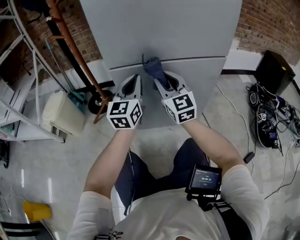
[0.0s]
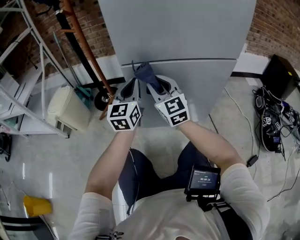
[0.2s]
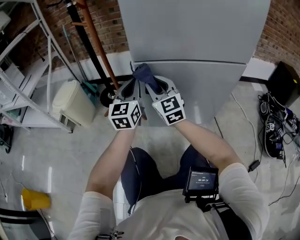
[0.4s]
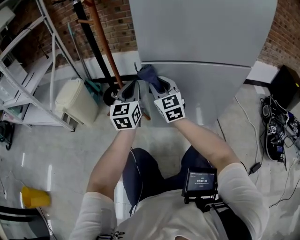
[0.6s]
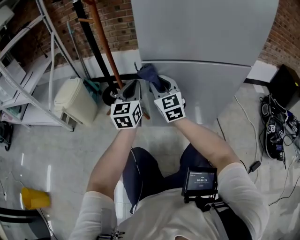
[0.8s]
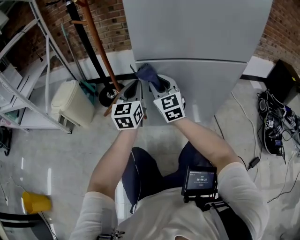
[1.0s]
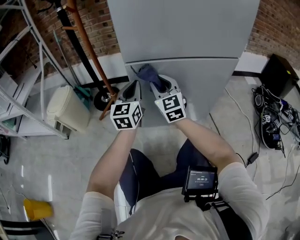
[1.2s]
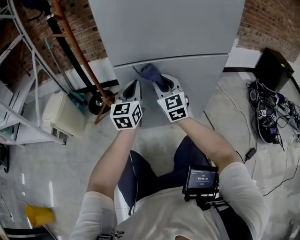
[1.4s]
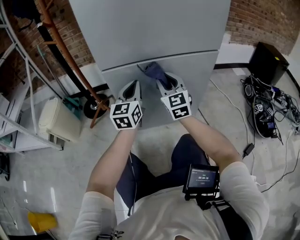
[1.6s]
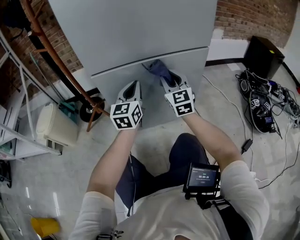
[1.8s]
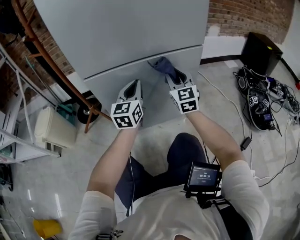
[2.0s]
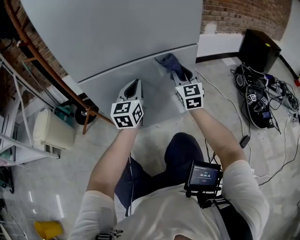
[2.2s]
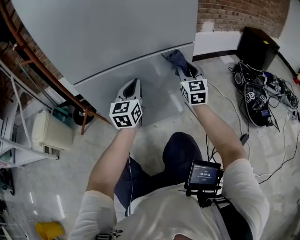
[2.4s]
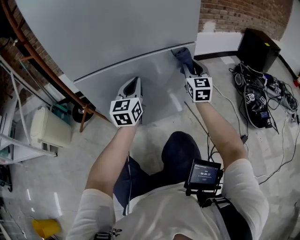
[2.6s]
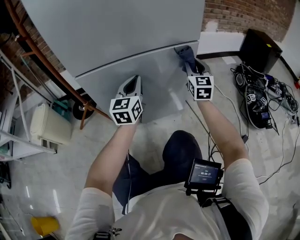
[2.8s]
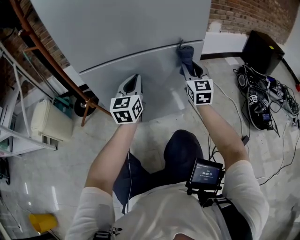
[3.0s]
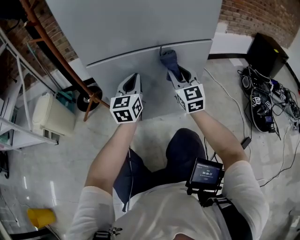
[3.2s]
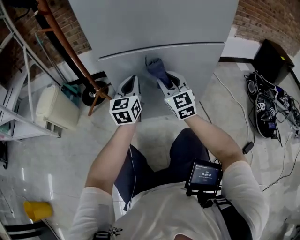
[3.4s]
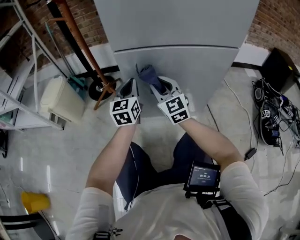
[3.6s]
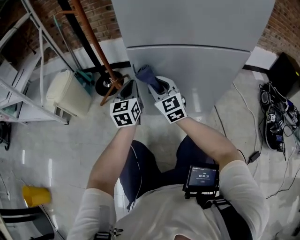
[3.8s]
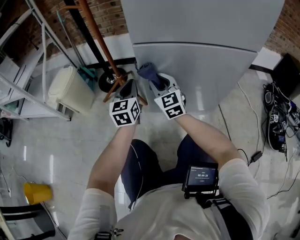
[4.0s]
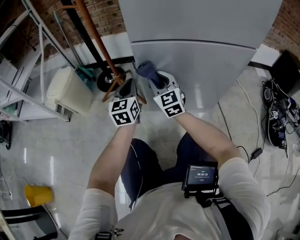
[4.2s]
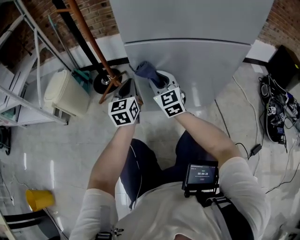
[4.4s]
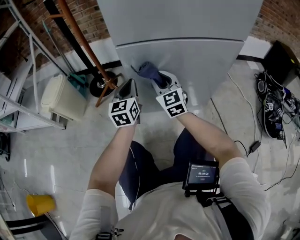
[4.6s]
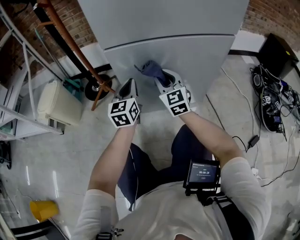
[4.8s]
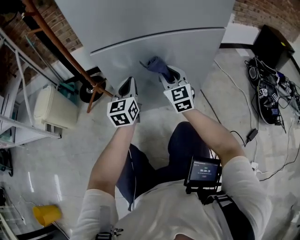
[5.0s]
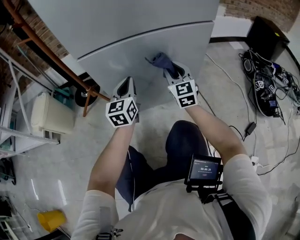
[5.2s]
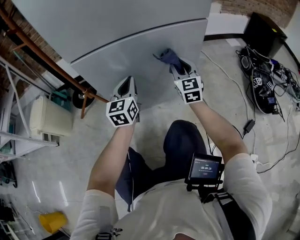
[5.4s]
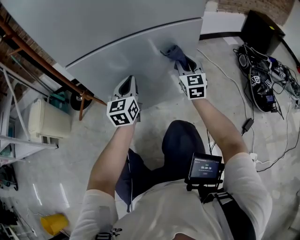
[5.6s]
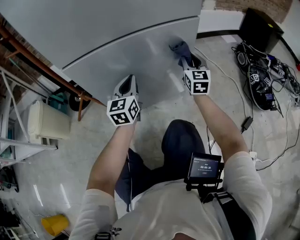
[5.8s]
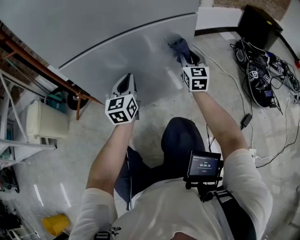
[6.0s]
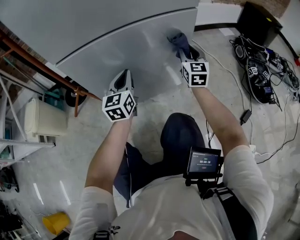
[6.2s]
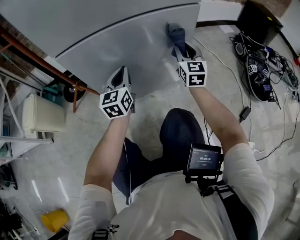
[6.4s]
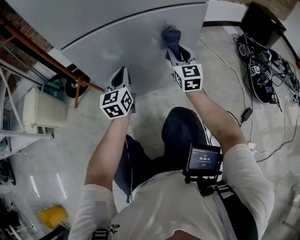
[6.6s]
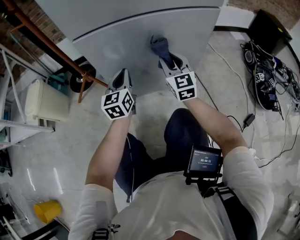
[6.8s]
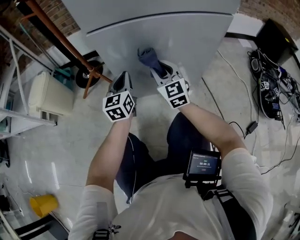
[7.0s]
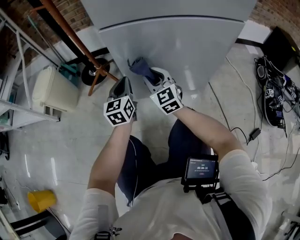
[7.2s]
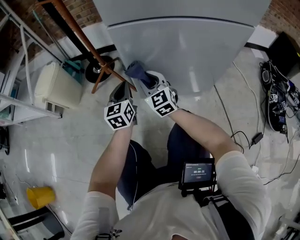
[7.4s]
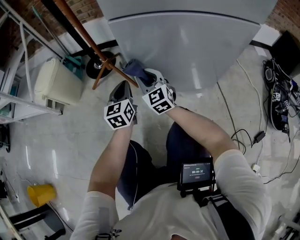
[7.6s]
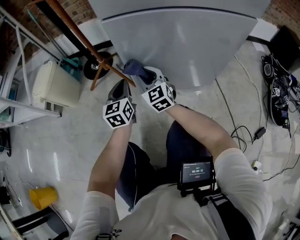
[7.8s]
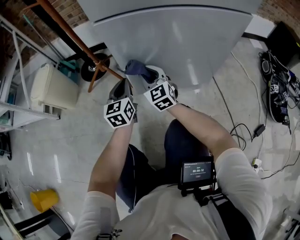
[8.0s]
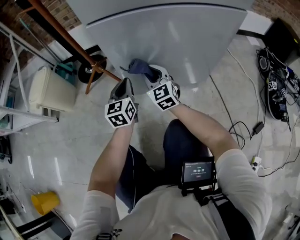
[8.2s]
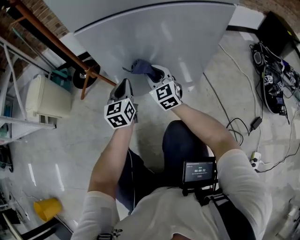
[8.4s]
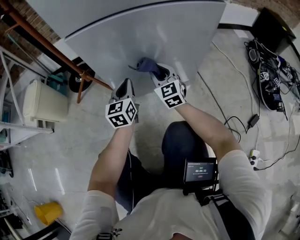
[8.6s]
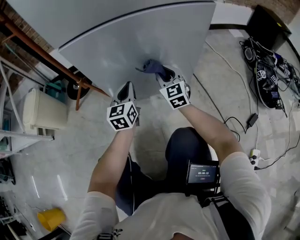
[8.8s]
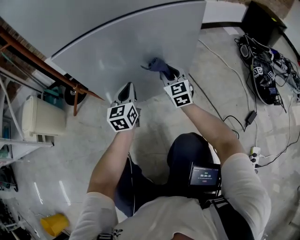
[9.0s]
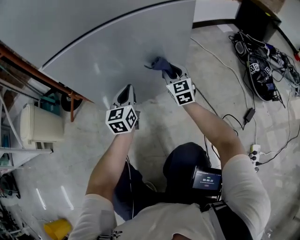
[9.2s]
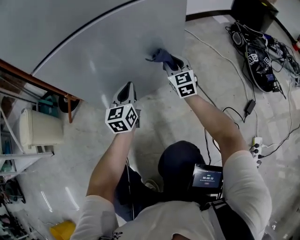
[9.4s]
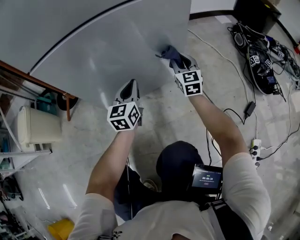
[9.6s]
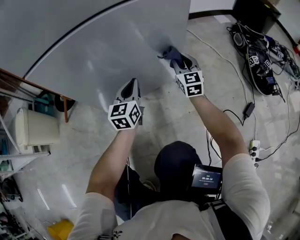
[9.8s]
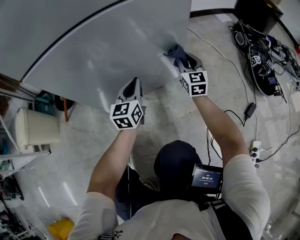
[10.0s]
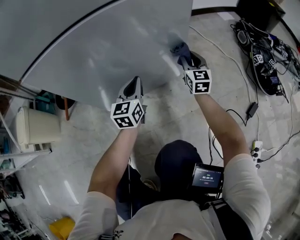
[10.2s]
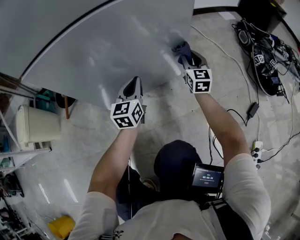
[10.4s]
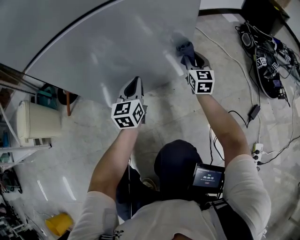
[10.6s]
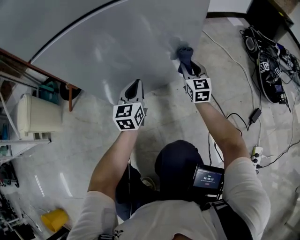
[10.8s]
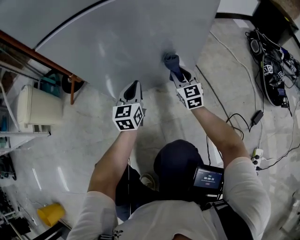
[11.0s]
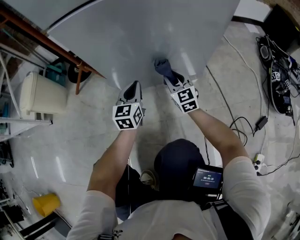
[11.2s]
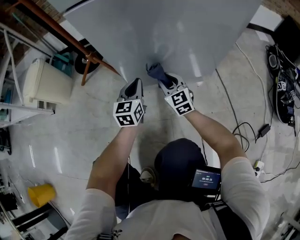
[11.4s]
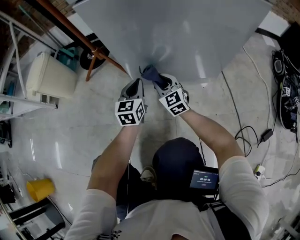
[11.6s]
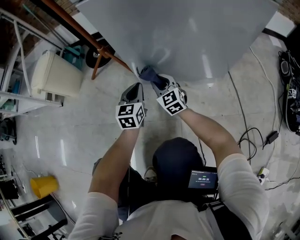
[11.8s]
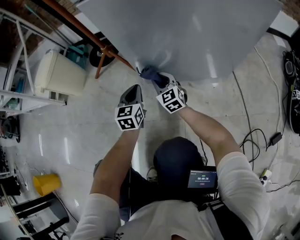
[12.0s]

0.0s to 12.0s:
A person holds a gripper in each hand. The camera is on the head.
0.0s to 1.6s: The right gripper moves some 15 cm to the left and comes back. Meanwhile the left gripper is displaced downward by roughly 5 cm, and goes to the left and returns, about 15 cm each way.
1.6s to 3.0s: The left gripper heads to the right, covering roughly 10 cm; the right gripper shifts roughly 20 cm to the right.
3.0s to 4.4s: The left gripper ends up some 25 cm from where it was, while the right gripper shifts by approximately 35 cm, and swivels roughly 30 degrees.
4.4s to 6.0s: The left gripper changes place by roughly 25 cm; the right gripper shifts by approximately 40 cm, and changes its angle by about 40 degrees.
6.0s to 7.6s: The right gripper ends up approximately 40 cm from where it was, and swivels roughly 40 degrees; the left gripper moves about 25 cm, and changes its angle by roughly 20 degrees.
7.6s to 9.0s: Both grippers travel together to the right, about 25 cm. The right gripper rotates roughly 30 degrees.
9.0s to 10.4s: The left gripper travels to the right by about 10 cm. The right gripper goes some 15 cm to the right and forward.
10.4s to 12.0s: The right gripper changes place by some 40 cm, and rotates approximately 40 degrees; the left gripper moves about 25 cm, and swivels about 30 degrees.

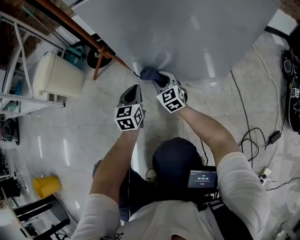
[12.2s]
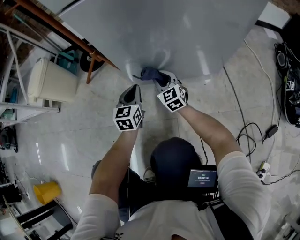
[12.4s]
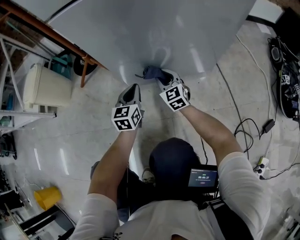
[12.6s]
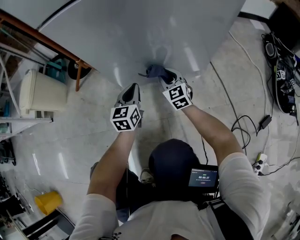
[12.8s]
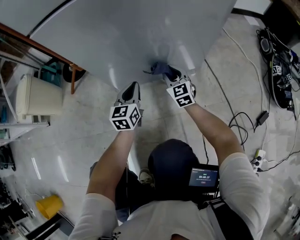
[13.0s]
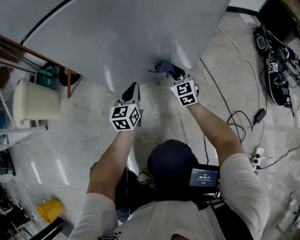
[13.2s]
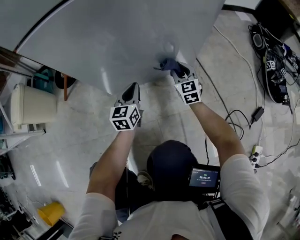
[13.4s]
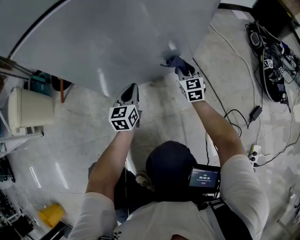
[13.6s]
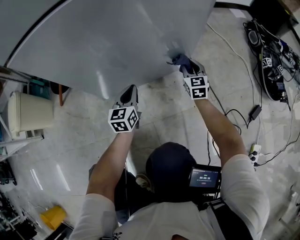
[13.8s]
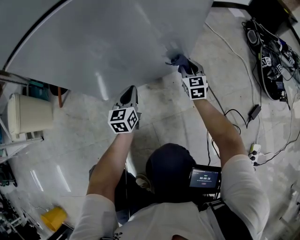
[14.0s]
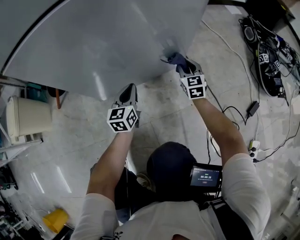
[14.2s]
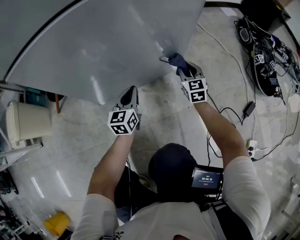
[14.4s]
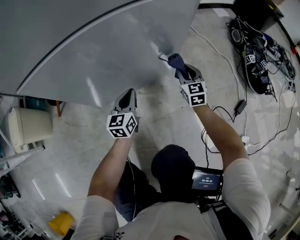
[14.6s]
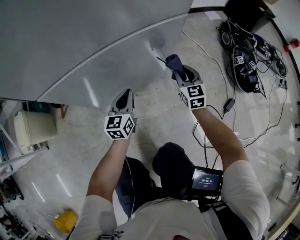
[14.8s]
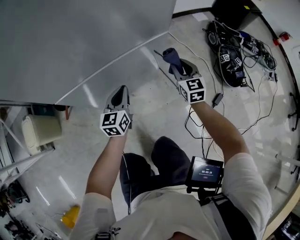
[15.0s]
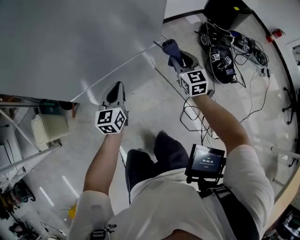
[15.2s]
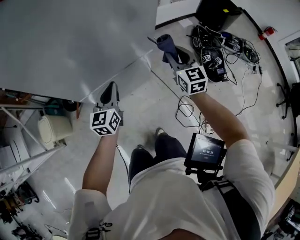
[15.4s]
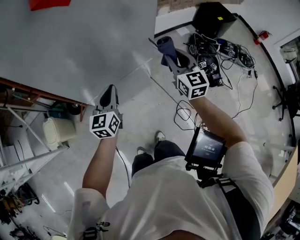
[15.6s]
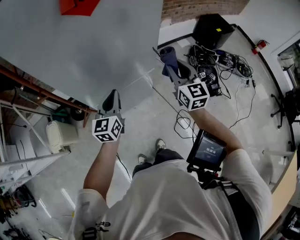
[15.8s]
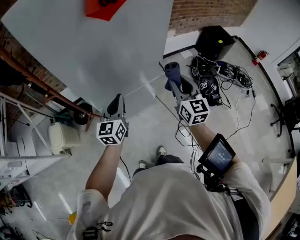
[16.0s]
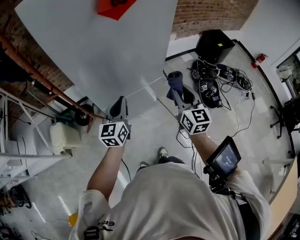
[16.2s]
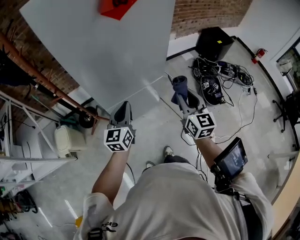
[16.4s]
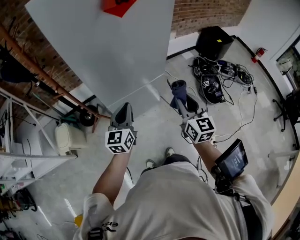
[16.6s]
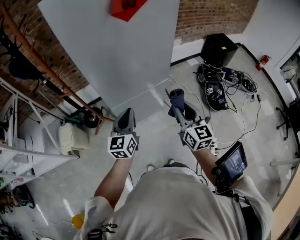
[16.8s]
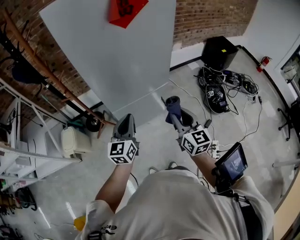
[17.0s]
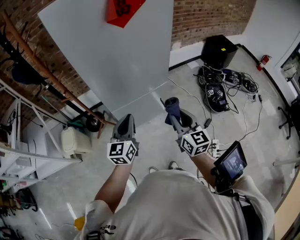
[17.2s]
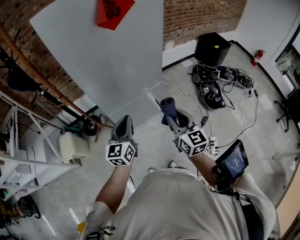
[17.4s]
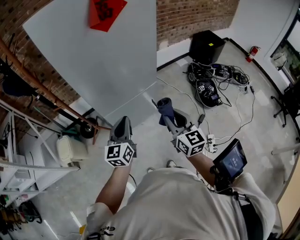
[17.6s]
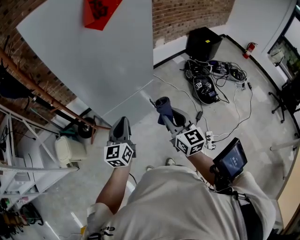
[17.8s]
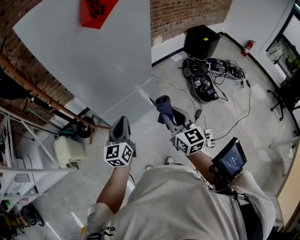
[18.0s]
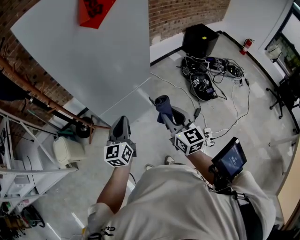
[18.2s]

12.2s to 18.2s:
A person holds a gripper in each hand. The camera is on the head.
12.2s to 13.8s: The right gripper moves roughly 35 cm, and rotates roughly 40 degrees. The left gripper shifts by about 20 cm.
13.8s to 15.2s: The two grippers go roughly 50 cm upward.
15.2s to 16.6s: Both grippers travel together upward and backward, roughly 40 cm.
16.6s to 18.2s: The right gripper travels backward by approximately 5 cm.

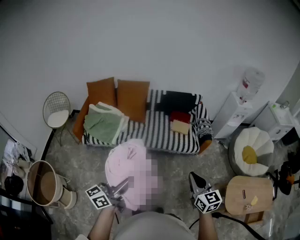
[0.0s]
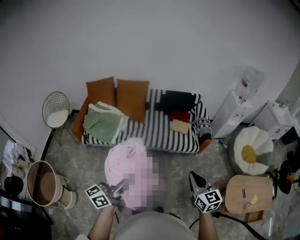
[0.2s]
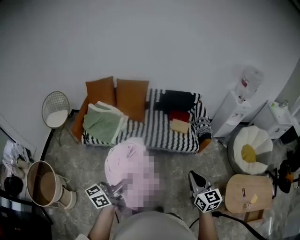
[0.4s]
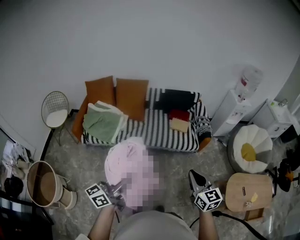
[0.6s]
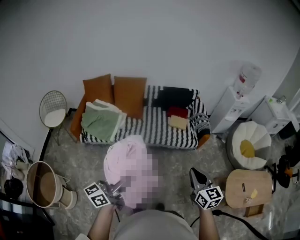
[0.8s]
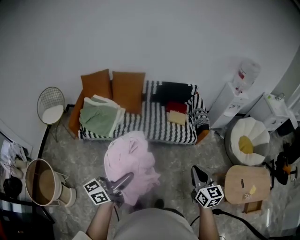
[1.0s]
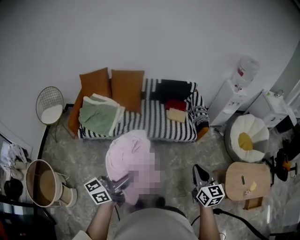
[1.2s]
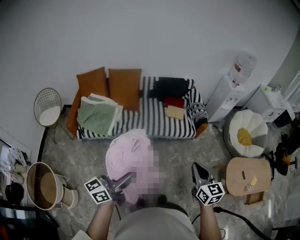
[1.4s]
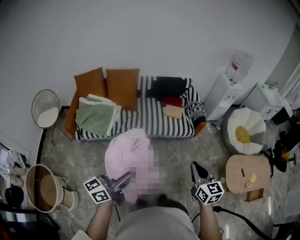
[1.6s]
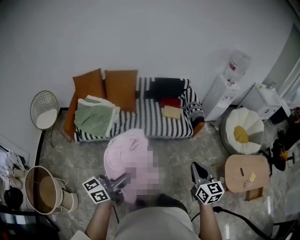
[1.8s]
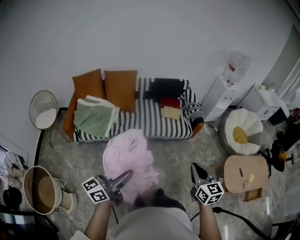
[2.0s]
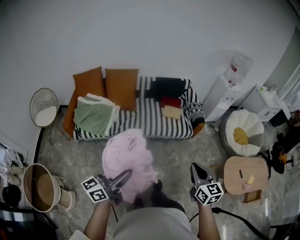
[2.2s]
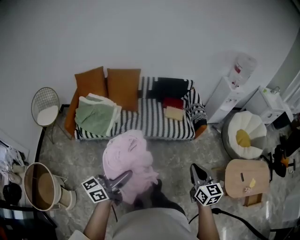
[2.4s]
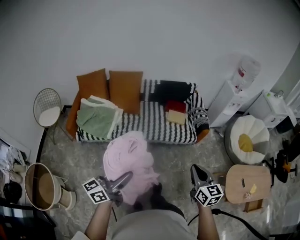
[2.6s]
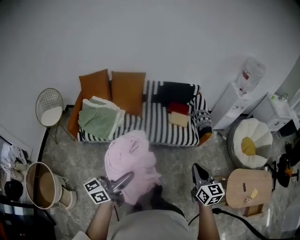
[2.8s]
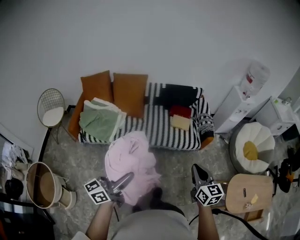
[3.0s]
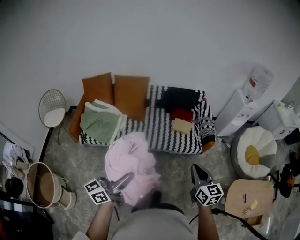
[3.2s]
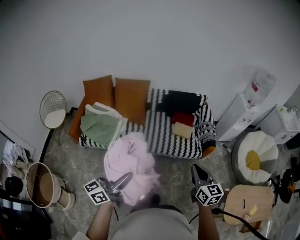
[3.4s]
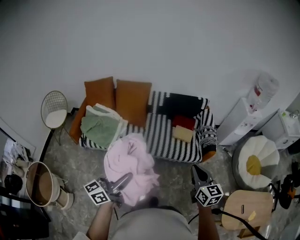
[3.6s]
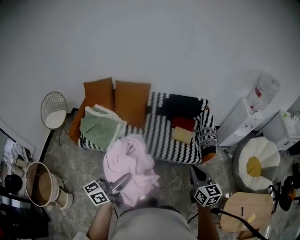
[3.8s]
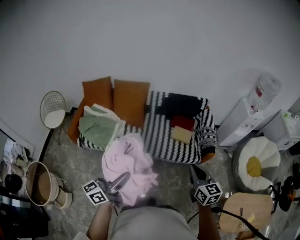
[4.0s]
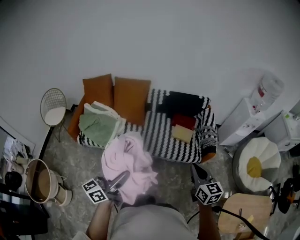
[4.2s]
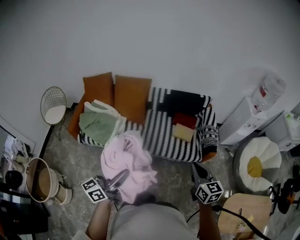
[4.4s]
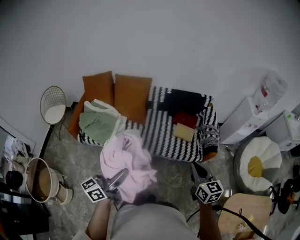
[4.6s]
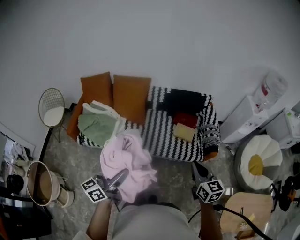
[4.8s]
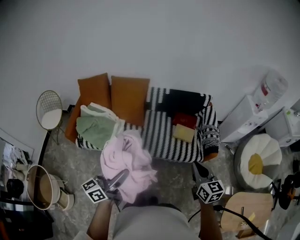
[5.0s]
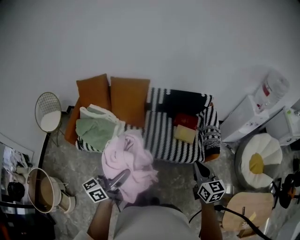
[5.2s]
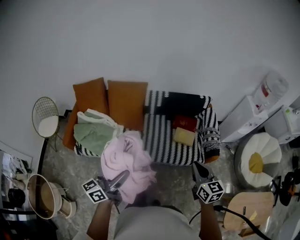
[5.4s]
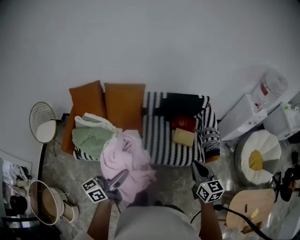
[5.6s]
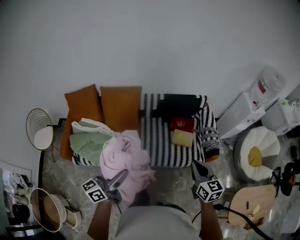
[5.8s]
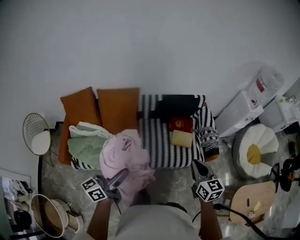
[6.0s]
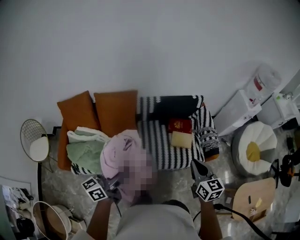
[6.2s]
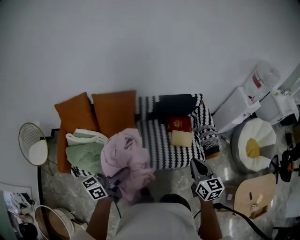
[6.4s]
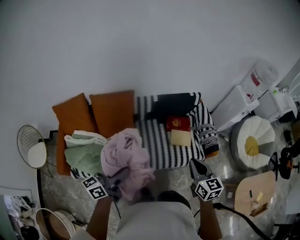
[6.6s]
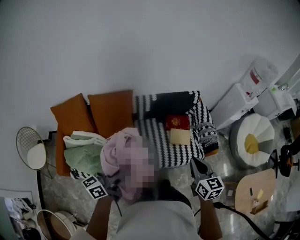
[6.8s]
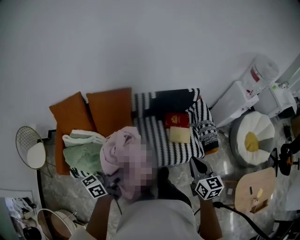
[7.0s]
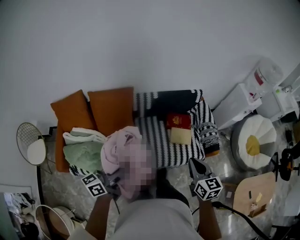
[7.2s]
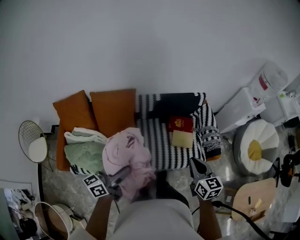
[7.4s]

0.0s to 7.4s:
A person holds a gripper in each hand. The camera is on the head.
0.0s to 1.4s: The grippers stay close to where they were, moving slightly.
1.4s to 3.0s: The two grippers go some 15 cm forward.
3.0s to 4.4s: The two grippers go approximately 20 cm forward.
4.4s to 6.0s: Both grippers travel together forward and to the left, some 30 cm.
6.0s to 7.4s: The grippers both shift forward by about 10 cm.
